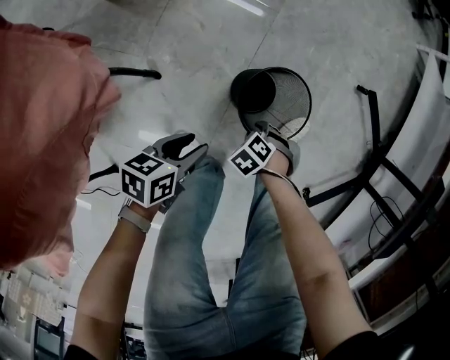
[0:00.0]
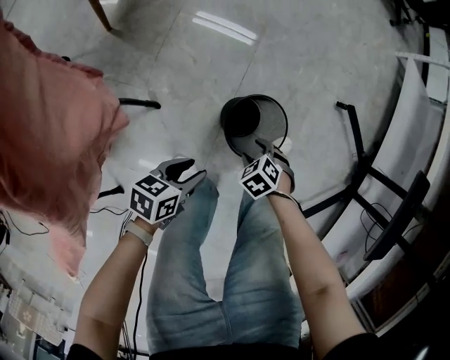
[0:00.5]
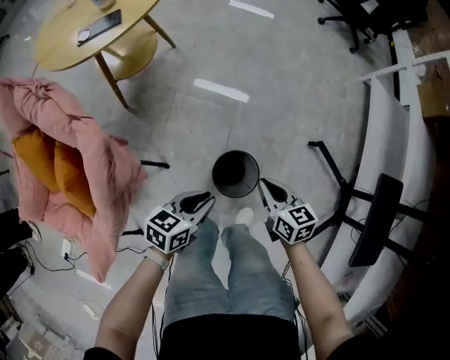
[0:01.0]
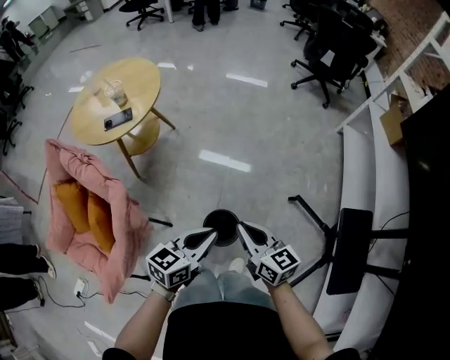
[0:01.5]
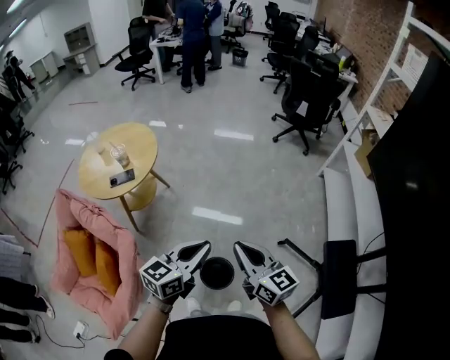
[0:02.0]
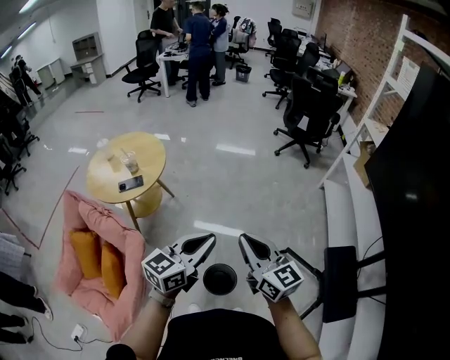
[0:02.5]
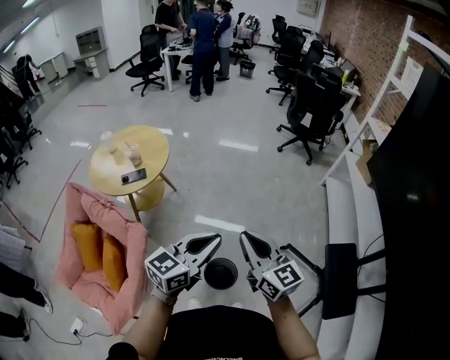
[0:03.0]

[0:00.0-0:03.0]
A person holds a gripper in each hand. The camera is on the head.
0:00.0 to 0:01.5: Both grippers move upward, some 60 cm. The left gripper turns by some 40 degrees, and closes its fingers, while the right gripper tilts its fingers roughly 70 degrees upward, and closes up.
0:01.5 to 0:03.0: The two grippers go roughly 20 cm upward. The left gripper changes its angle by roughly 20 degrees; the right gripper rotates roughly 20 degrees.

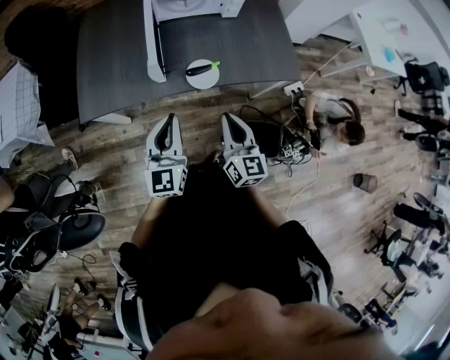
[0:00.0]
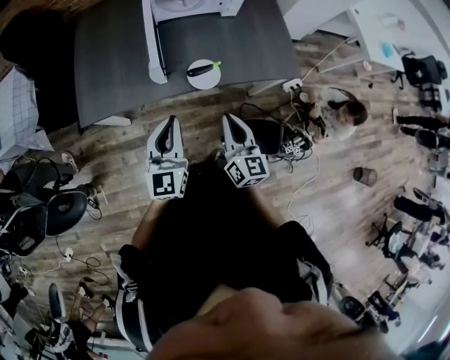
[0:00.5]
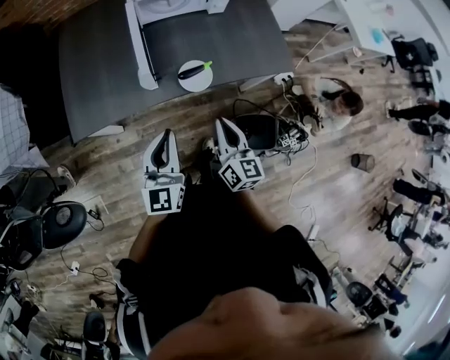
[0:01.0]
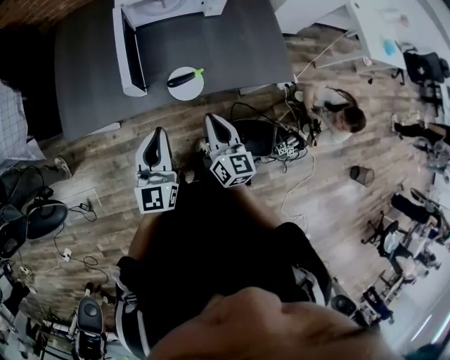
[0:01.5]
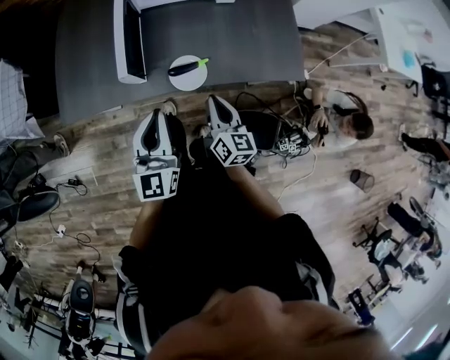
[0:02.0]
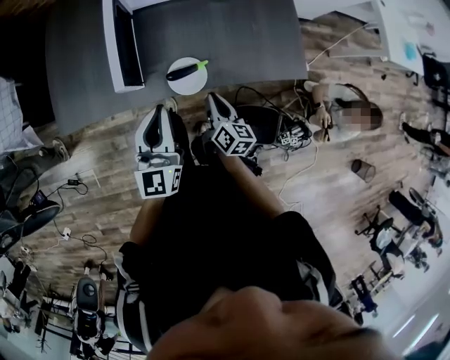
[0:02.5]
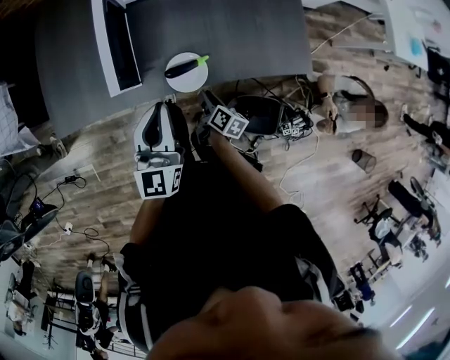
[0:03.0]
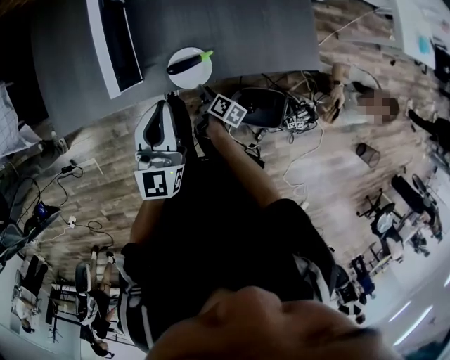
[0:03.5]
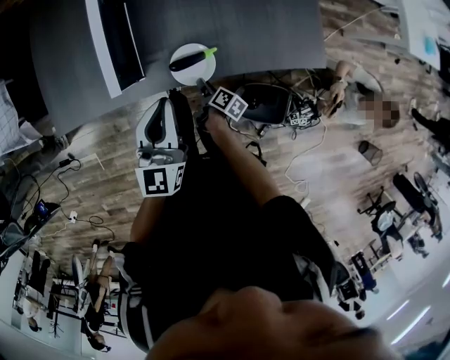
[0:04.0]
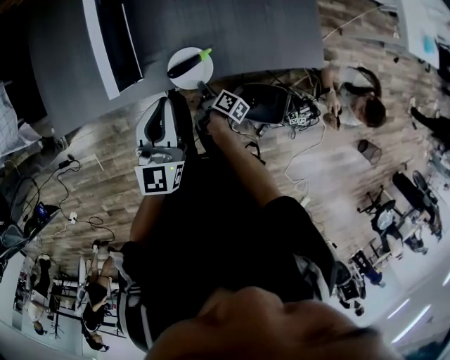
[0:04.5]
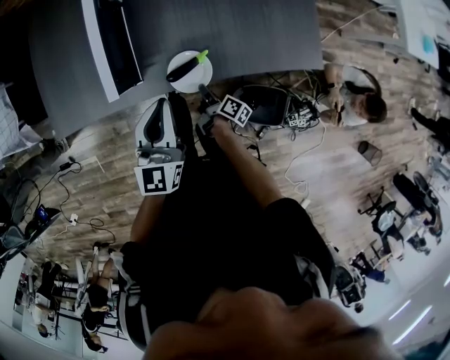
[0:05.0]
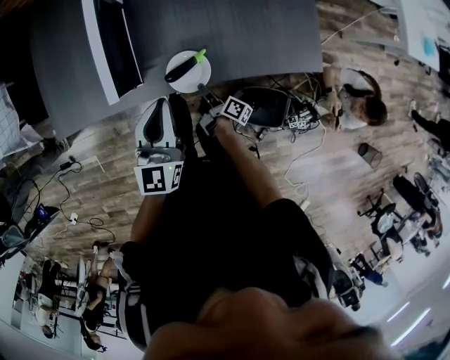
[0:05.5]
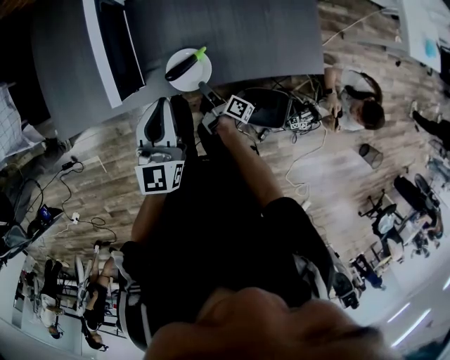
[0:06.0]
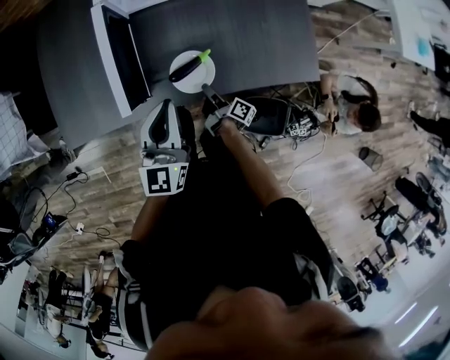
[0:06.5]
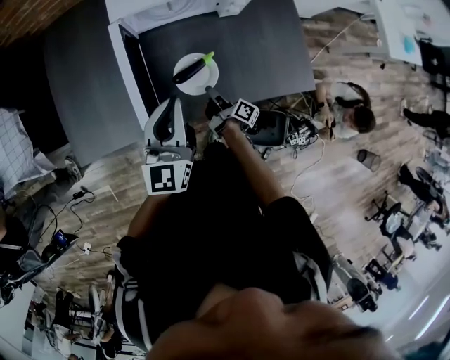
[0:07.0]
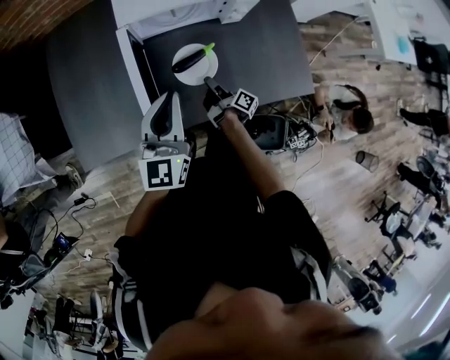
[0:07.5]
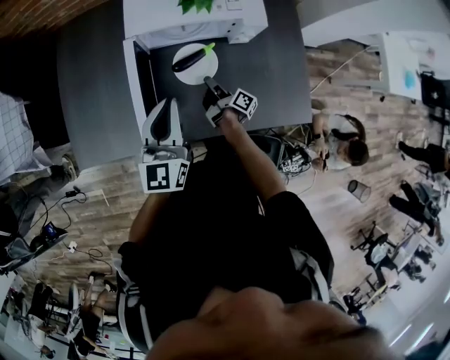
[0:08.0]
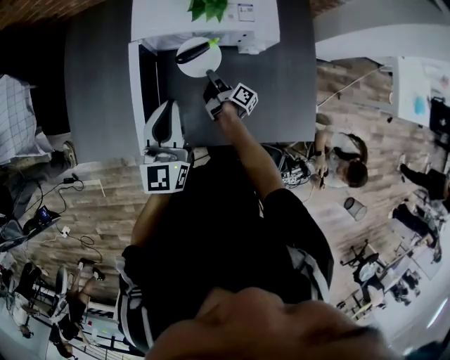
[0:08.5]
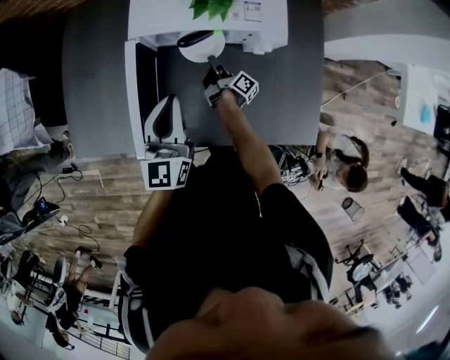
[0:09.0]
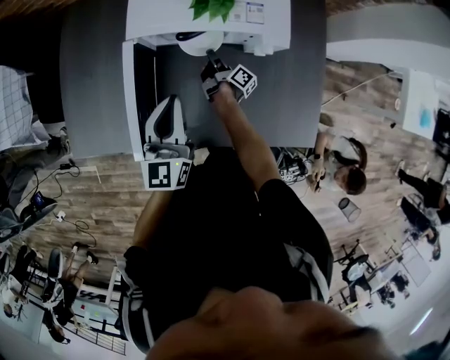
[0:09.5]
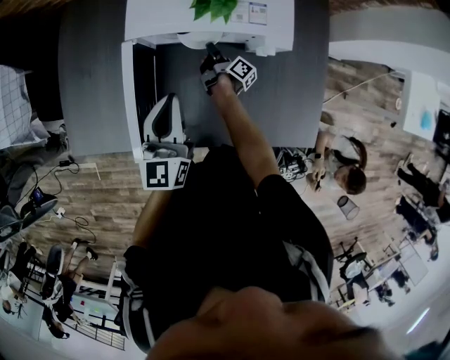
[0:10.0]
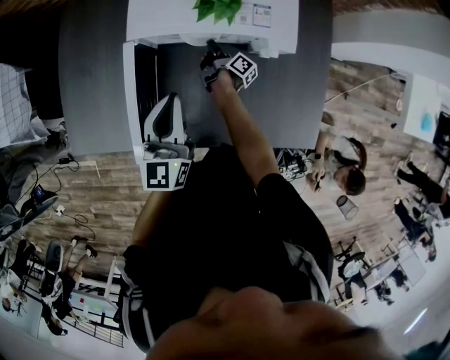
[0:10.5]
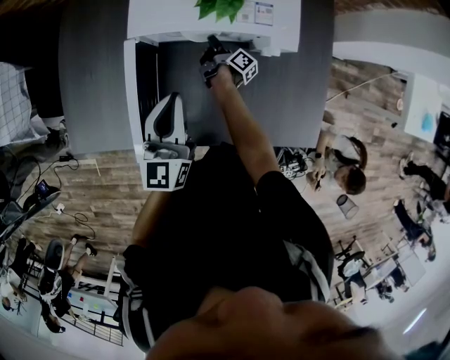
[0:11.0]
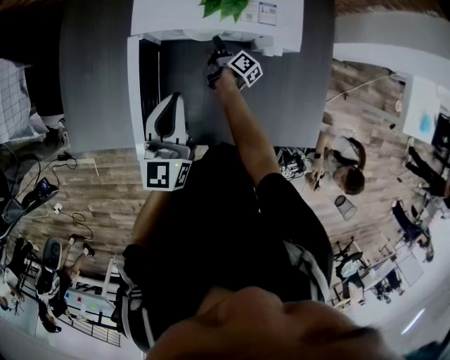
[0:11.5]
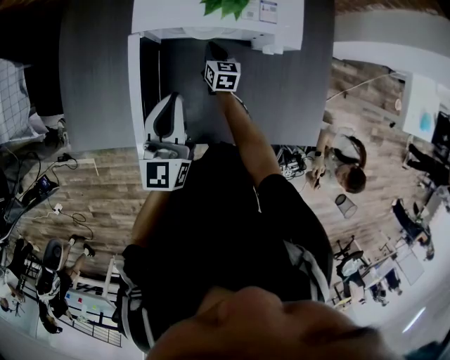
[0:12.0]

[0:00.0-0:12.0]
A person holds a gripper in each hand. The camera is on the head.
0:00.0 to 0:02.0: The right gripper shifts roughly 15 cm forward and downward. The left gripper is displaced forward and to the right by roughly 10 cm.
0:02.0 to 0:04.0: The left gripper travels forward and downward by approximately 10 cm. Meanwhile the right gripper travels downward by roughly 30 cm, twists approximately 50 degrees clockwise, seen from behind, and opens its fingers.
0:04.0 to 0:06.0: The right gripper turns by approximately 20 degrees, and closes up.
0:06.0 to 0:08.0: The two grippers go roughly 20 cm forward and upward.
0:08.0 to 0:10.0: The left gripper travels forward and downward by about 10 cm, while the right gripper moves forward, roughly 15 cm.
0:10.0 to 0:12.0: The right gripper rolls counterclockwise, seen from behind, by roughly 70 degrees.

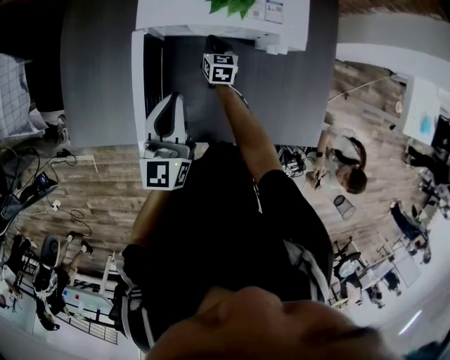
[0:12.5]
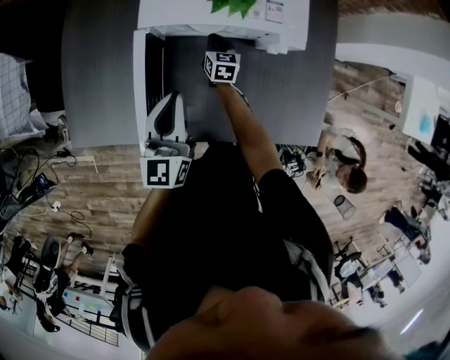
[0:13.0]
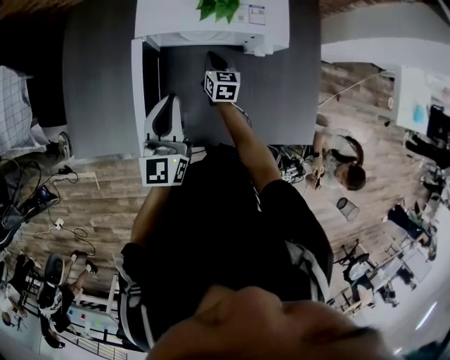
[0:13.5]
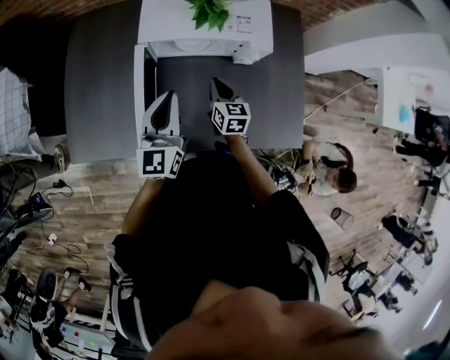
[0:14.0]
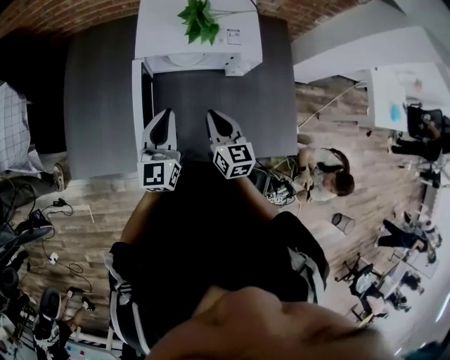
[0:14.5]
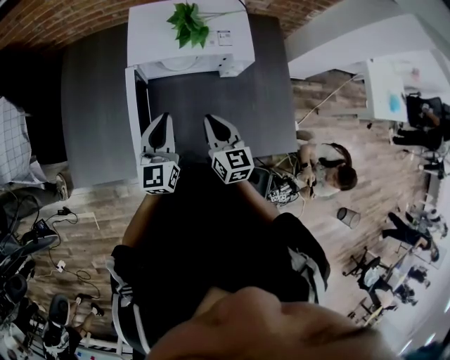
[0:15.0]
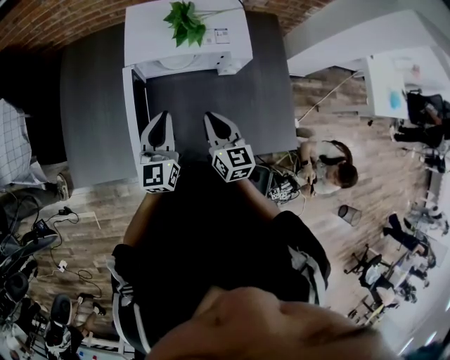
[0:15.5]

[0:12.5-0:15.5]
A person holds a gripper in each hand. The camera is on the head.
0:12.5 to 0:14.0: The right gripper shifts roughly 20 cm upward and backward; the left gripper moves about 5 cm.
0:14.0 to 0:15.5: The right gripper moves upward and backward, approximately 15 cm.

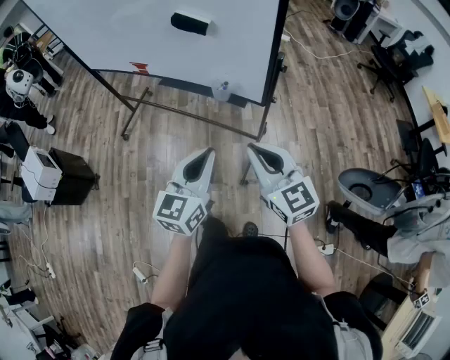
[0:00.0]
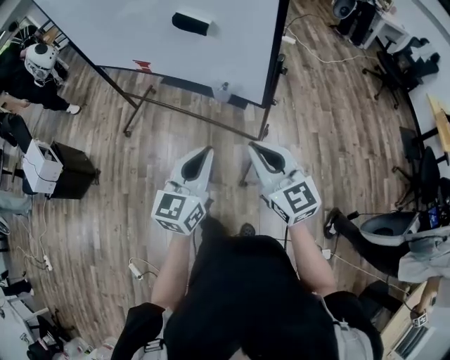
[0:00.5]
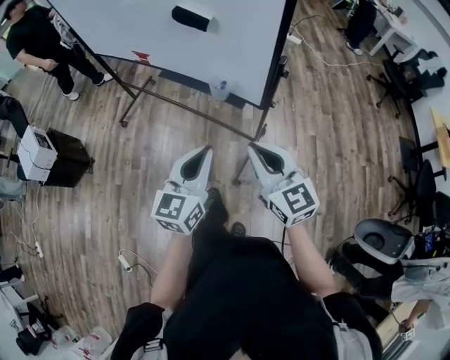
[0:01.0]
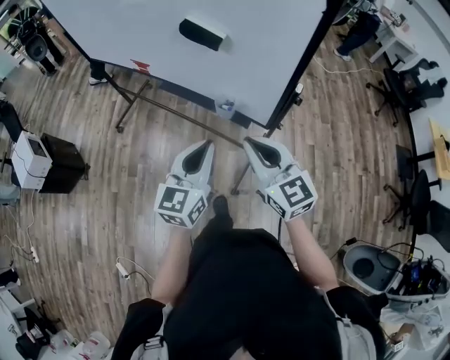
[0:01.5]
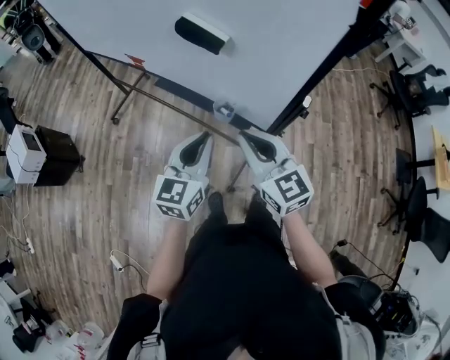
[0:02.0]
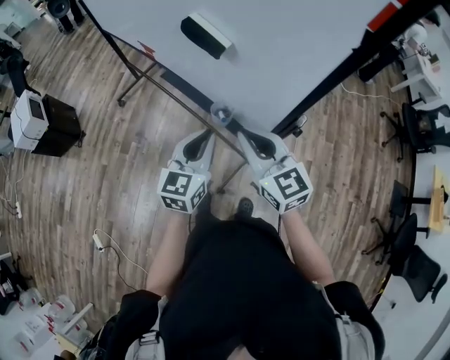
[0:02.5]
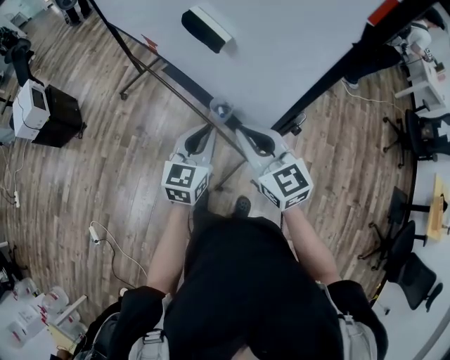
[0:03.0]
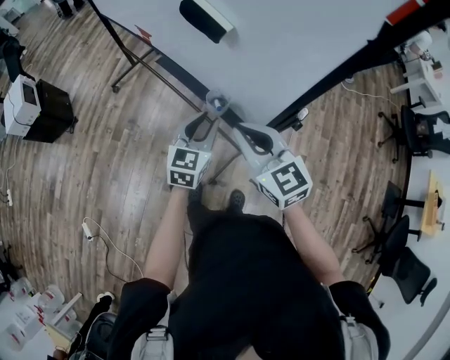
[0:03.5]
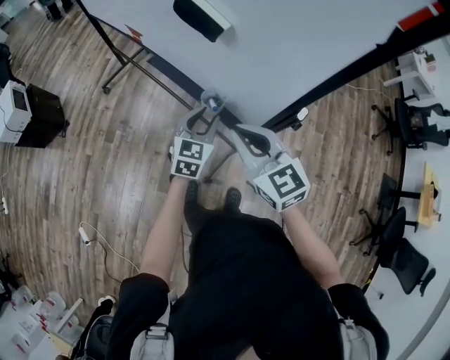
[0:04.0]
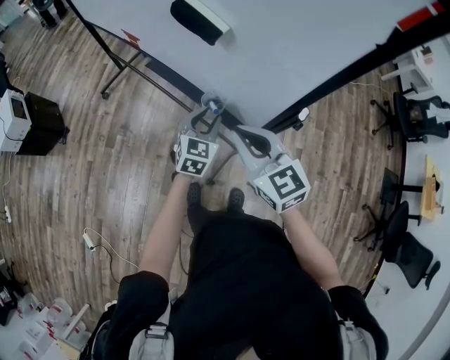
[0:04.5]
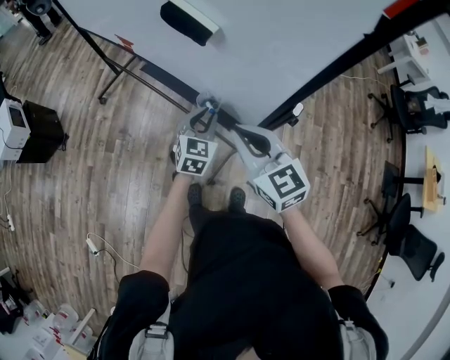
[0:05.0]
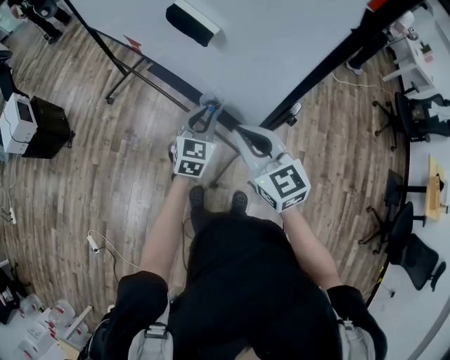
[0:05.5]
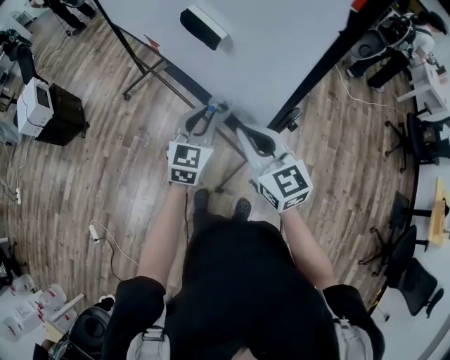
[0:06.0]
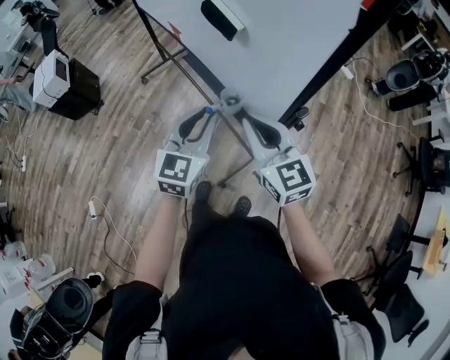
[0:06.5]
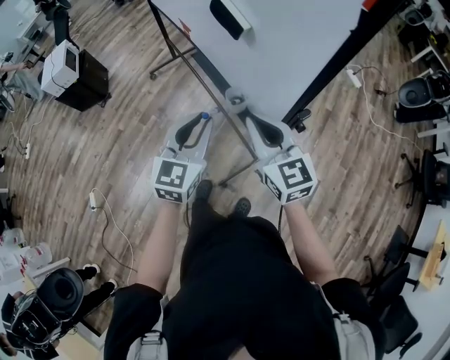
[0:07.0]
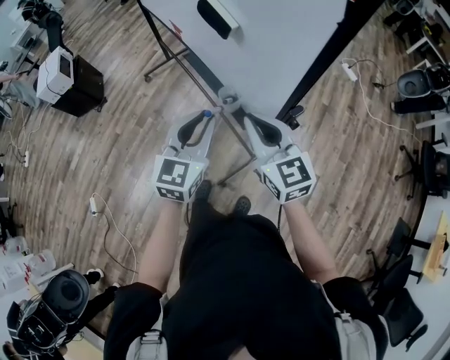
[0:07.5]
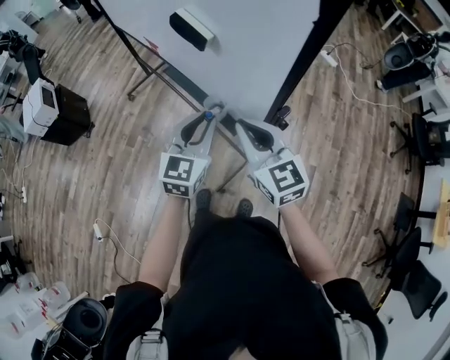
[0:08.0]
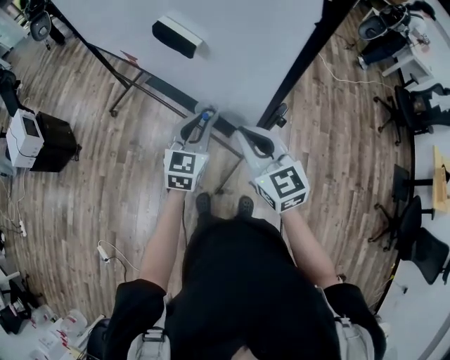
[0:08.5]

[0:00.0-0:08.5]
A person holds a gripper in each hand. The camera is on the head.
0:00.0 to 0:02.0: Both grippers travel together forward, approximately 20 cm.
0:02.0 to 0:04.0: The left gripper travels downward, forward and to the right by roughly 15 cm, and opens.
0:04.0 to 0:06.5: The right gripper ends up about 5 cm from where it was; the left gripper heads upward and backward, covering about 15 cm.
0:06.5 to 0:08.5: The left gripper heads downward and forward, covering approximately 10 cm.
